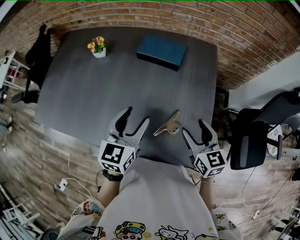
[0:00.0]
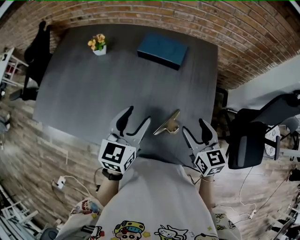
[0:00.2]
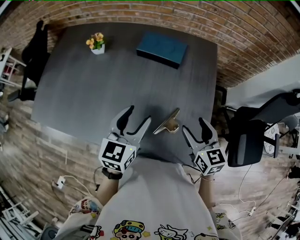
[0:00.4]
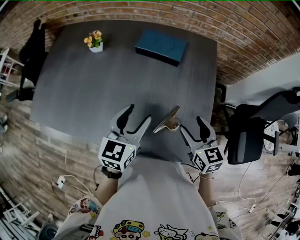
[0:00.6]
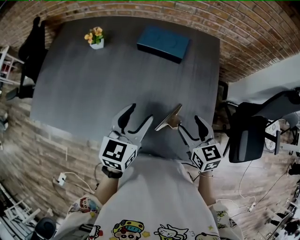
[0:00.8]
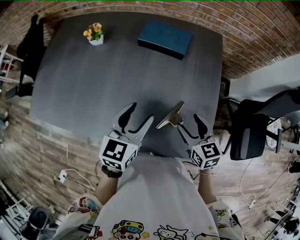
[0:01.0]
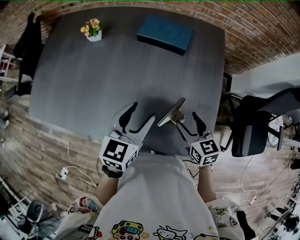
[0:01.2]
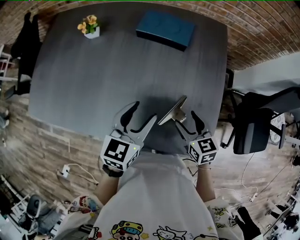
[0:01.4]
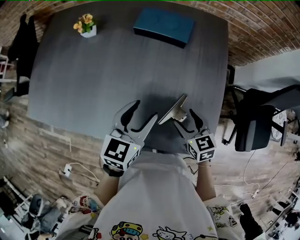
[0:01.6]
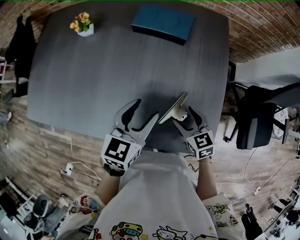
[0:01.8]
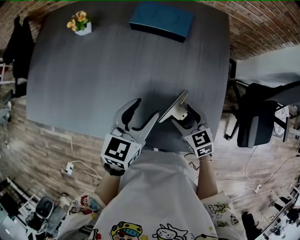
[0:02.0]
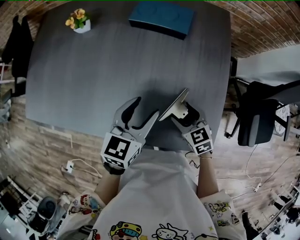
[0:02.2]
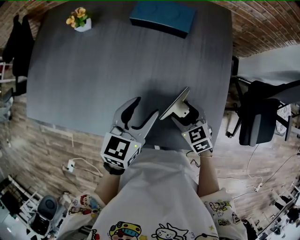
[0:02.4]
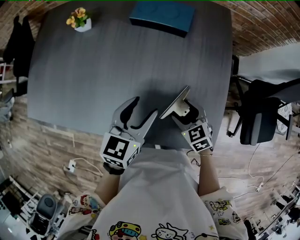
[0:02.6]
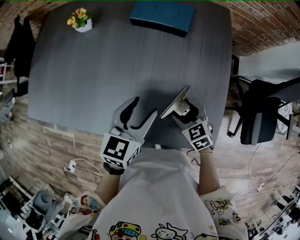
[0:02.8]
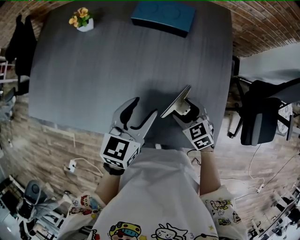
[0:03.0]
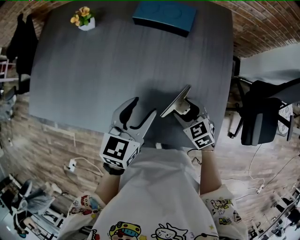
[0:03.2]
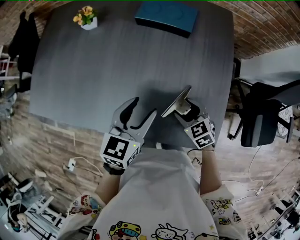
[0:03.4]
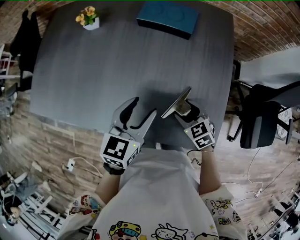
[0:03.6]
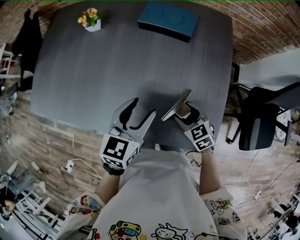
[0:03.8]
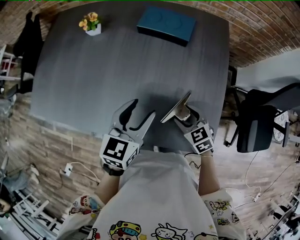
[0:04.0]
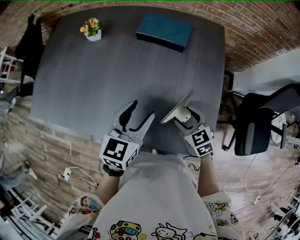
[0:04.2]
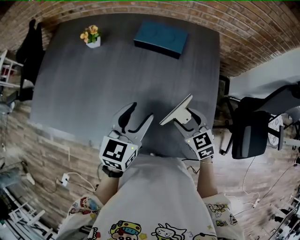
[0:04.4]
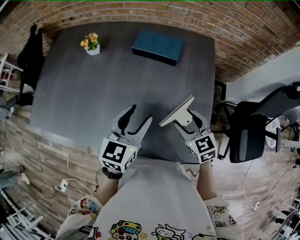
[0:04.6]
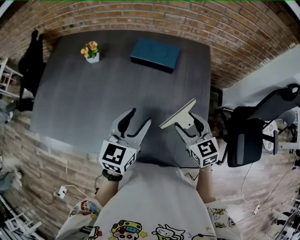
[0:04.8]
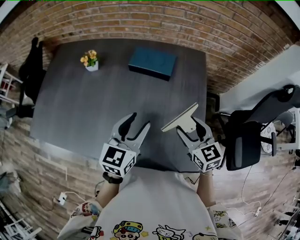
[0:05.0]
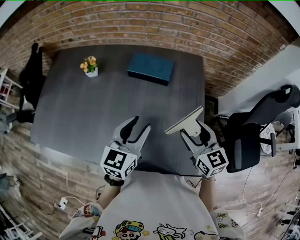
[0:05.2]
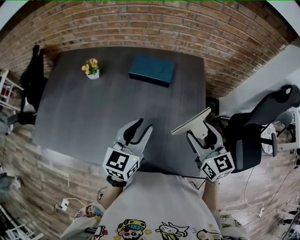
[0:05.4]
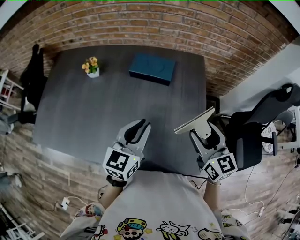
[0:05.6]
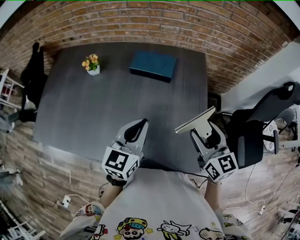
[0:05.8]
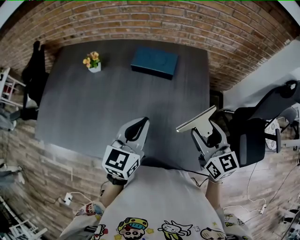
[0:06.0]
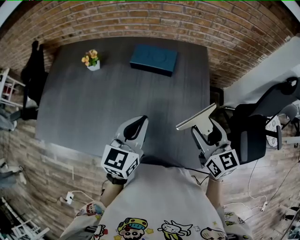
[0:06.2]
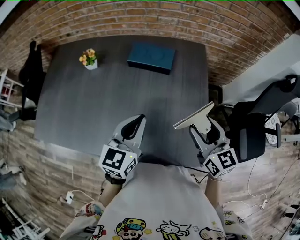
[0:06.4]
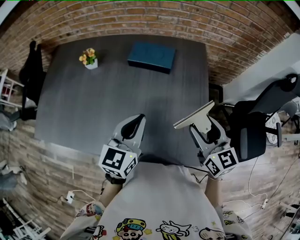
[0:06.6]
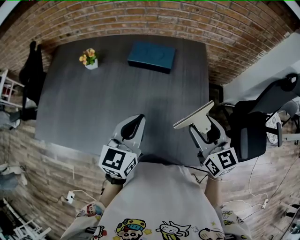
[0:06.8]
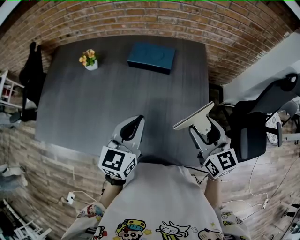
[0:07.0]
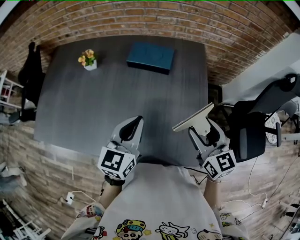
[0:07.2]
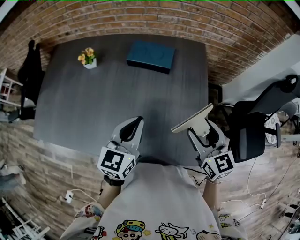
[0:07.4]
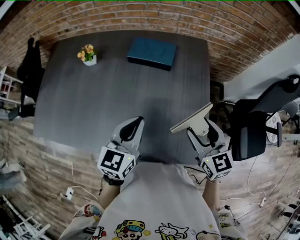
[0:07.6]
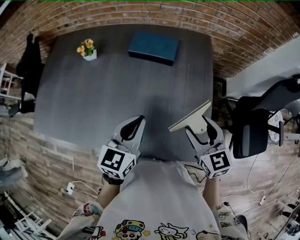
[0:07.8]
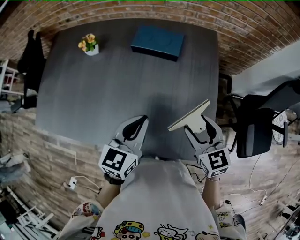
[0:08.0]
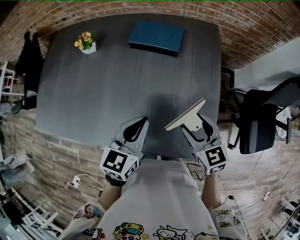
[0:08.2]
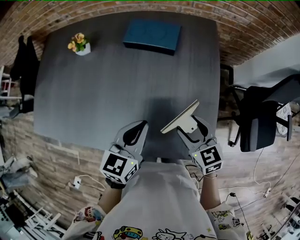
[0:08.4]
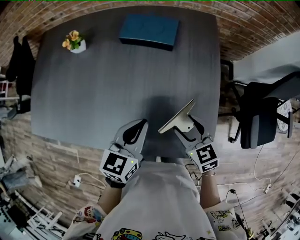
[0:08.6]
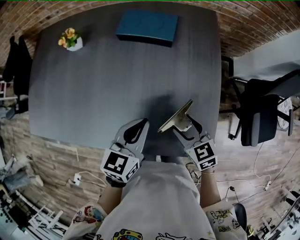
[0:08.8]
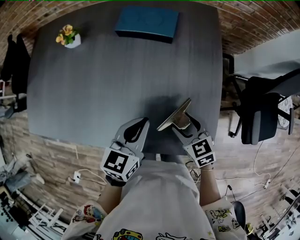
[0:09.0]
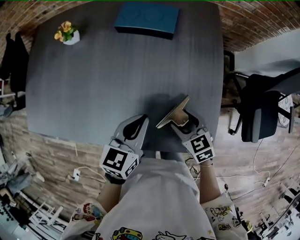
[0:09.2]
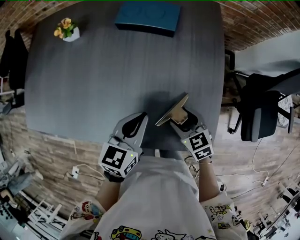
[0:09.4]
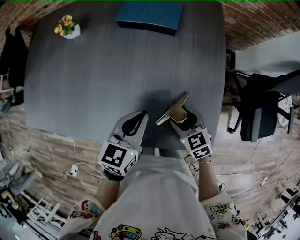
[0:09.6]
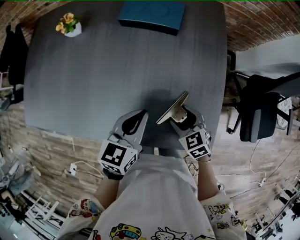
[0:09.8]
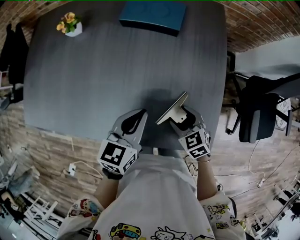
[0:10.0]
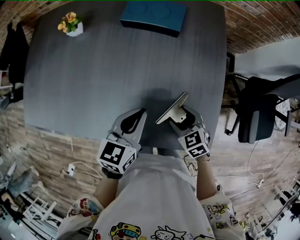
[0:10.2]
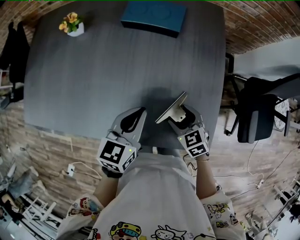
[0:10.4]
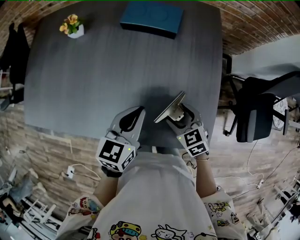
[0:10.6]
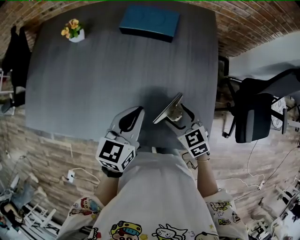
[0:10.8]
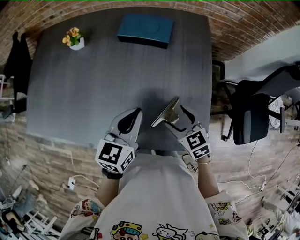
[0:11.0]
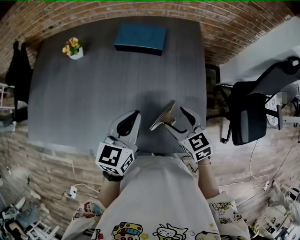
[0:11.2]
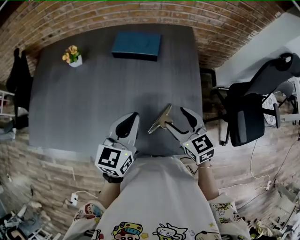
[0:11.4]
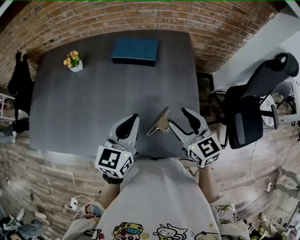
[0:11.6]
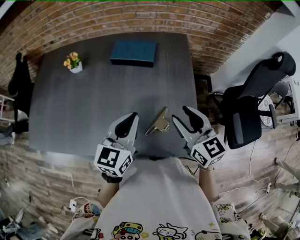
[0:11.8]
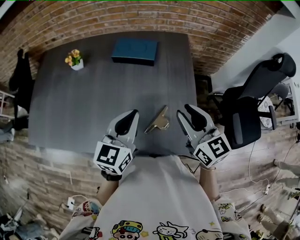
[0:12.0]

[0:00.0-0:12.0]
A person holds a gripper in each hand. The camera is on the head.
0:00.0 to 0:01.6: The left gripper heads downward, covering about 5 cm; the right gripper is displaced downward by roughly 10 cm.
0:01.6 to 0:03.0: The right gripper goes some 5 cm downward.
0:03.0 to 0:04.4: The right gripper goes roughly 10 cm upward.
0:04.4 to 0:06.0: The right gripper moves upward, approximately 15 cm, and rotates roughly 30 degrees; the left gripper is displaced upward by about 5 cm, and closes.
0:06.0 to 0:07.6: The grippers move only a little.
0:07.6 to 0:09.0: The right gripper moves downward, some 15 cm, and changes its angle by roughly 20 degrees, while the left gripper travels downward by some 10 cm.
0:09.0 to 0:10.4: There are only small adjustments of the grippers.
0:10.4 to 0:12.0: The left gripper is displaced upward by roughly 10 cm. Meanwhile the right gripper goes approximately 25 cm upward, tips its fingers upward by about 40 degrees, and closes.

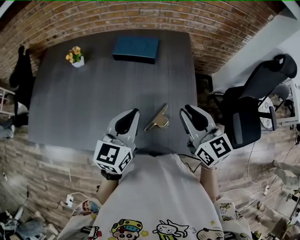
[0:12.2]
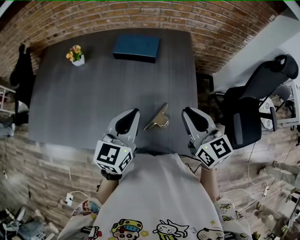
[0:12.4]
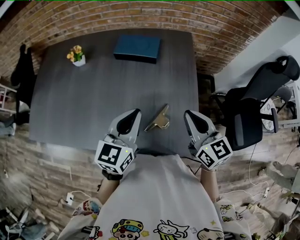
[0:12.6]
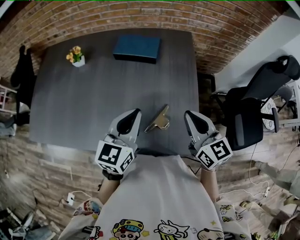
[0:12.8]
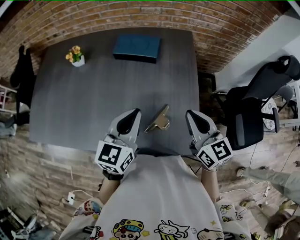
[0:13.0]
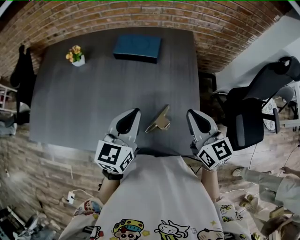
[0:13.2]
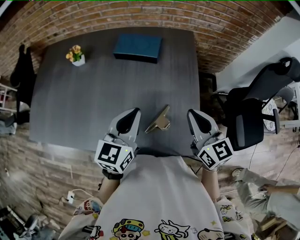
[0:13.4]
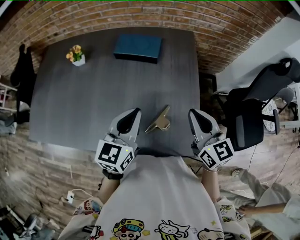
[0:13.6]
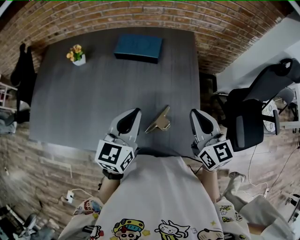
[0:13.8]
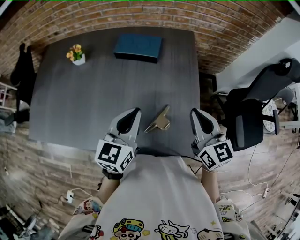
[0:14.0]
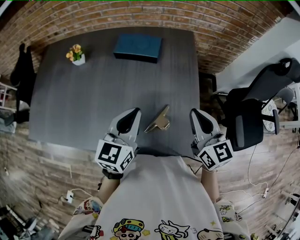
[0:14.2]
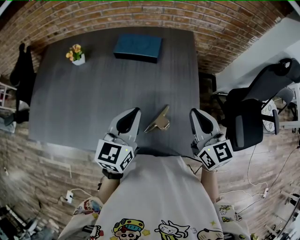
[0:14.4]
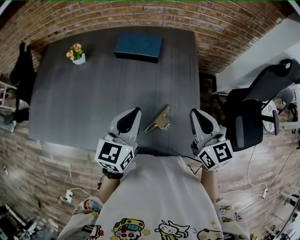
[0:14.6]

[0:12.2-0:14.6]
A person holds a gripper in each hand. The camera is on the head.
0:12.2 to 0:13.4: The grippers stay close to where they were, moving slightly.
0:13.4 to 0:14.6: Both grippers stay about where they are.

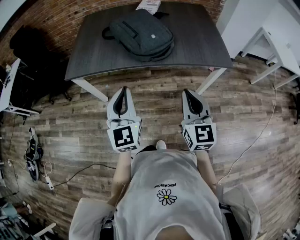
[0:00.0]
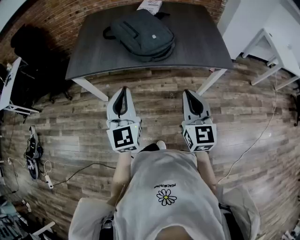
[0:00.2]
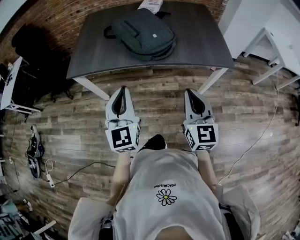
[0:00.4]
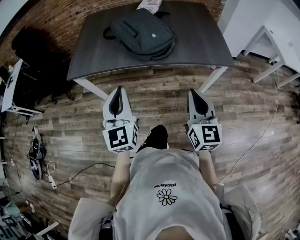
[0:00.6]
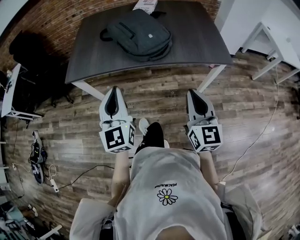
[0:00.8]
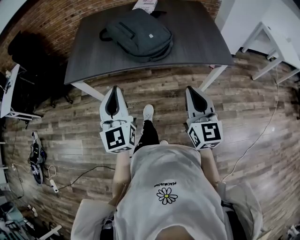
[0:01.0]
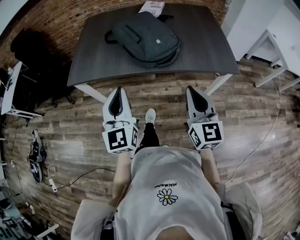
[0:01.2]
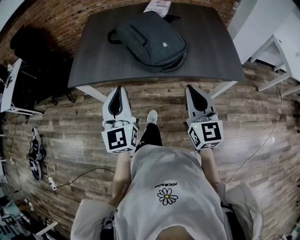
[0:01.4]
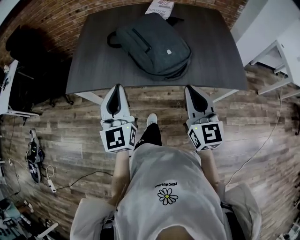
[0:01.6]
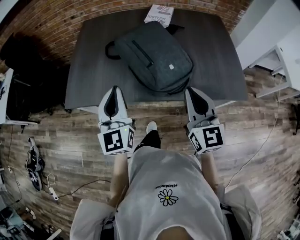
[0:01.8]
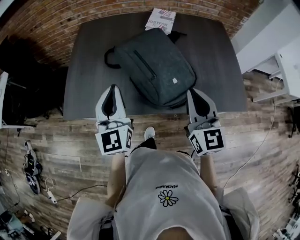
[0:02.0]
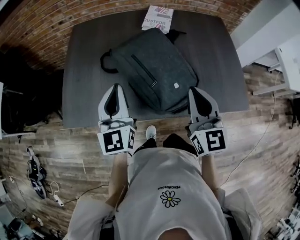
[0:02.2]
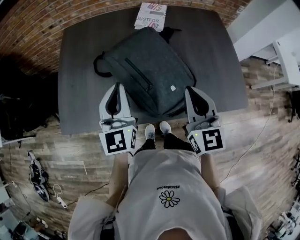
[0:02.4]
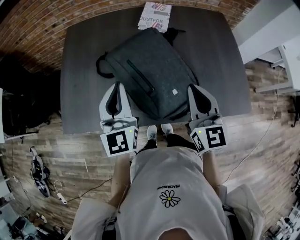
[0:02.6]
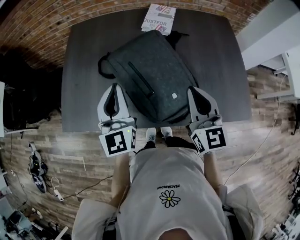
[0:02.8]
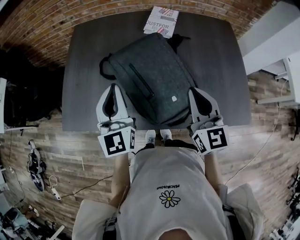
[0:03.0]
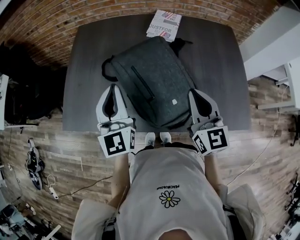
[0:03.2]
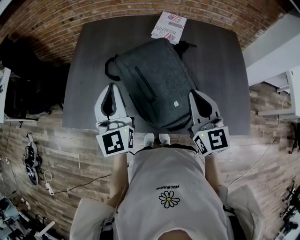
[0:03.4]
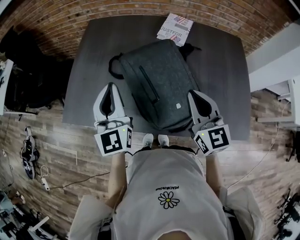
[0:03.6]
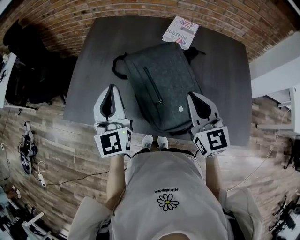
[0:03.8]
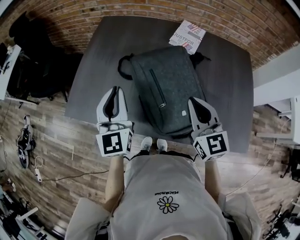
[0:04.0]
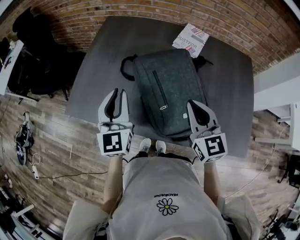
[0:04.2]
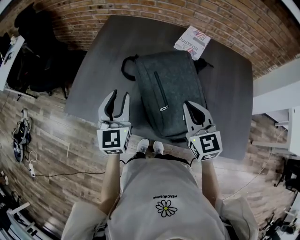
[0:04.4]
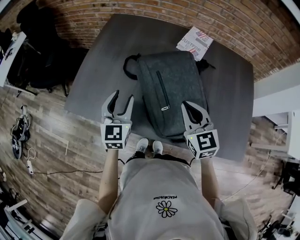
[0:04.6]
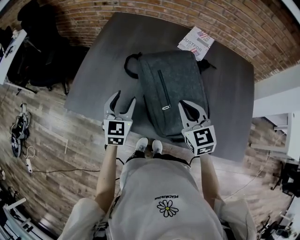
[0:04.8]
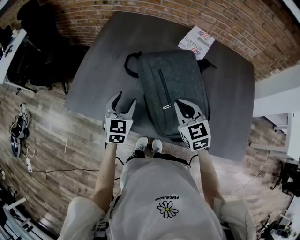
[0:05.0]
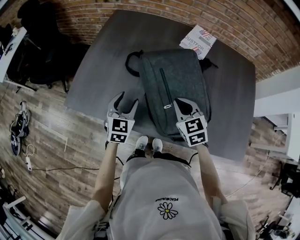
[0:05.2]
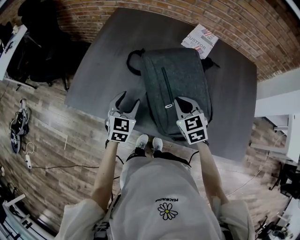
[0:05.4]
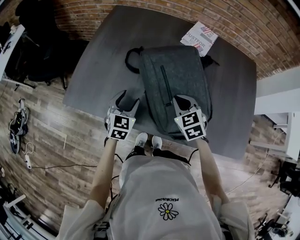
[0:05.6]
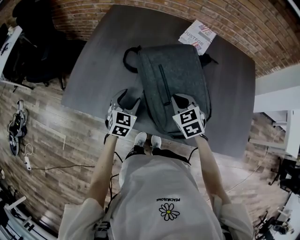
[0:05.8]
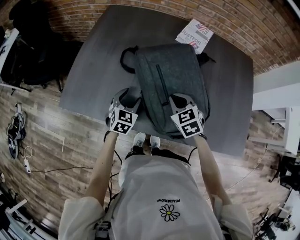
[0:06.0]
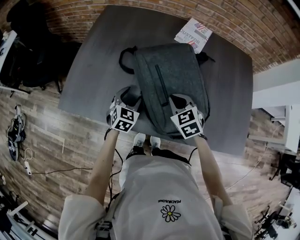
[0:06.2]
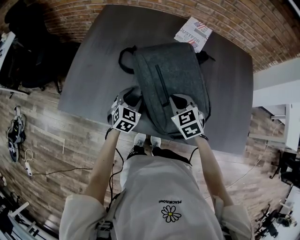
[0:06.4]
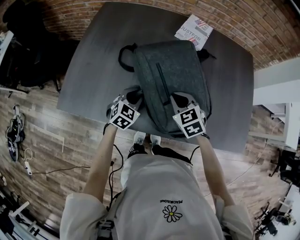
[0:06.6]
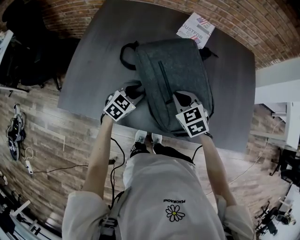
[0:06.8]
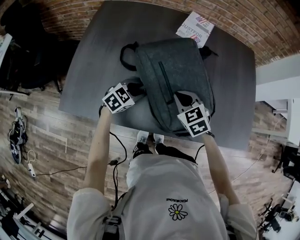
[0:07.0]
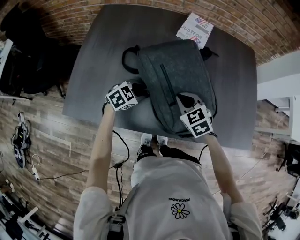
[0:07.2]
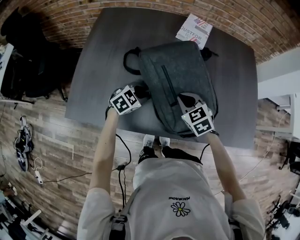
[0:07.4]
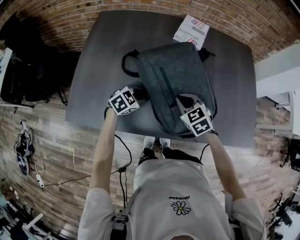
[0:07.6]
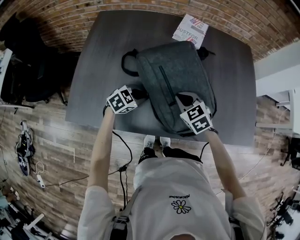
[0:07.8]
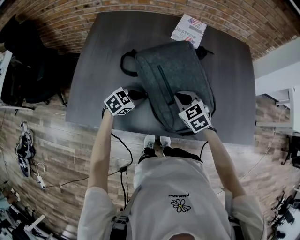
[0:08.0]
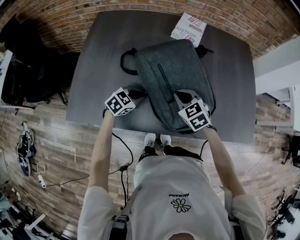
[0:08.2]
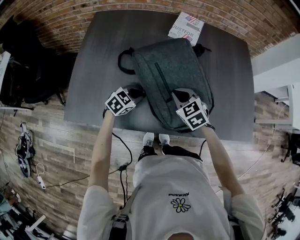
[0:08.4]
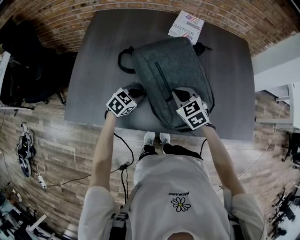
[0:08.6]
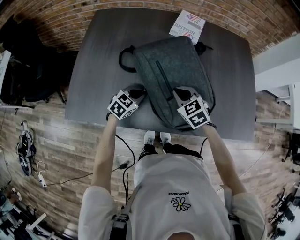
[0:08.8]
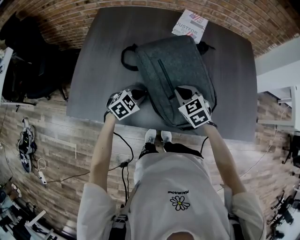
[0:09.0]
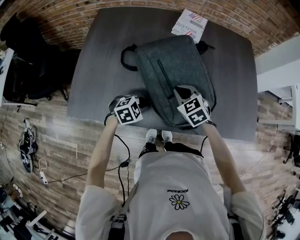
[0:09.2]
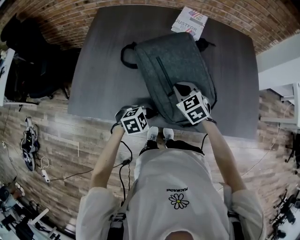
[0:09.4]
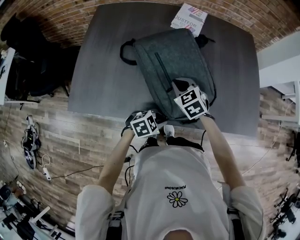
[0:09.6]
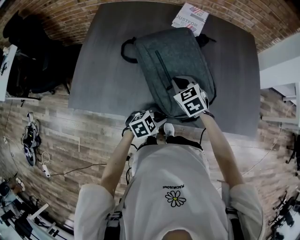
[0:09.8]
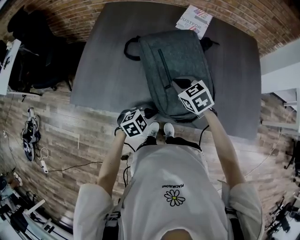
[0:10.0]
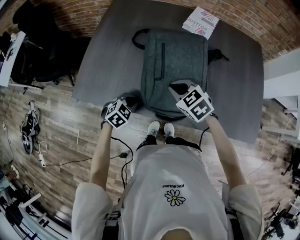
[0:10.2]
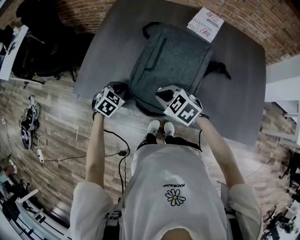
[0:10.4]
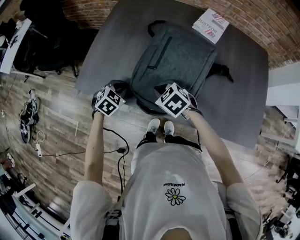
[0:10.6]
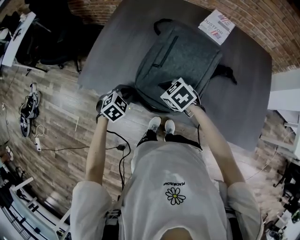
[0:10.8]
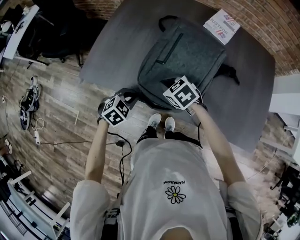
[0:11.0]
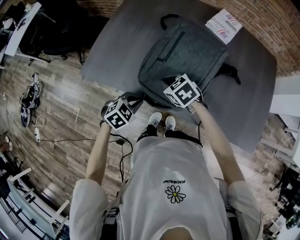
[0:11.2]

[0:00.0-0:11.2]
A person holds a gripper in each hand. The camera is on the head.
0:00.0 to 0:01.6: Both grippers travel together forward, some 15 cm.
0:01.6 to 0:03.2: The two grippers go about 25 cm forward.
0:03.2 to 0:04.8: The left gripper is displaced downward by about 15 cm, swivels approximately 20 degrees, and opens its fingers. Meanwhile the right gripper heads to the left, downward and forward, covering roughly 10 cm, and rotates some 30 degrees.
0:04.8 to 0:06.4: The left gripper moves downward and to the right, about 15 cm, and swivels approximately 20 degrees; the right gripper goes about 10 cm downward, and swivels roughly 20 degrees.
0:06.4 to 0:08.0: The left gripper changes its angle by approximately 40 degrees, and closes.
0:08.0 to 0:09.6: The left gripper heads to the right and backward, covering approximately 20 cm.
0:09.6 to 0:11.2: The right gripper shifts by approximately 15 cm, and rotates roughly 30 degrees. The left gripper turns by approximately 30 degrees.
